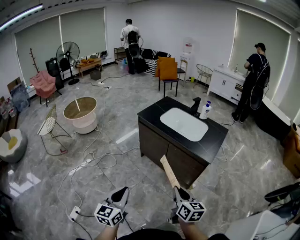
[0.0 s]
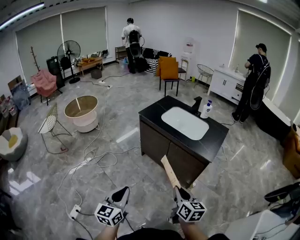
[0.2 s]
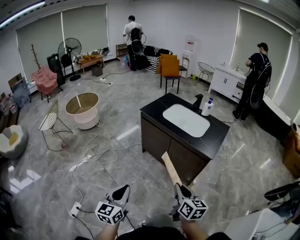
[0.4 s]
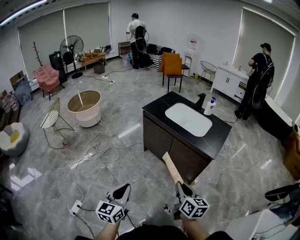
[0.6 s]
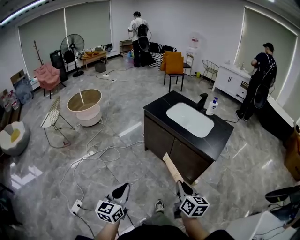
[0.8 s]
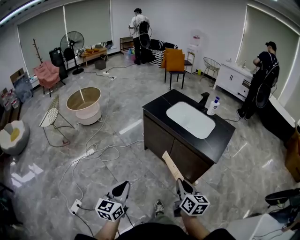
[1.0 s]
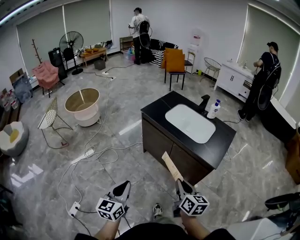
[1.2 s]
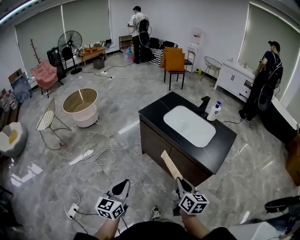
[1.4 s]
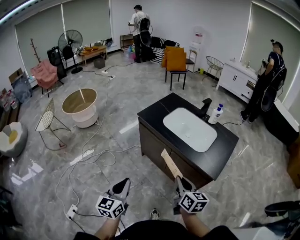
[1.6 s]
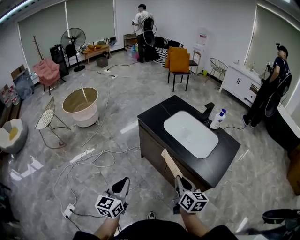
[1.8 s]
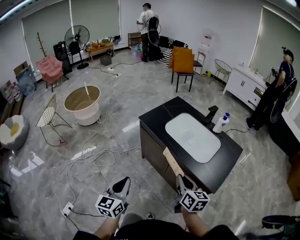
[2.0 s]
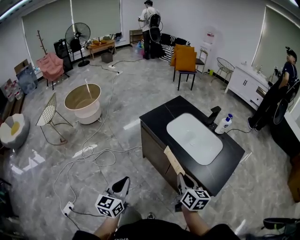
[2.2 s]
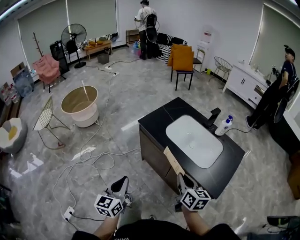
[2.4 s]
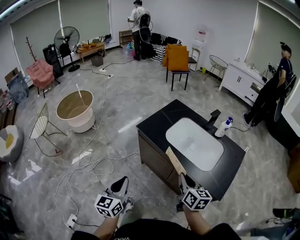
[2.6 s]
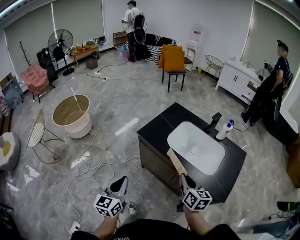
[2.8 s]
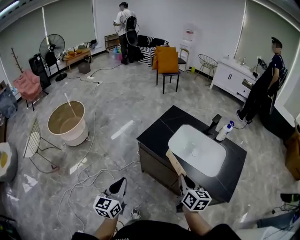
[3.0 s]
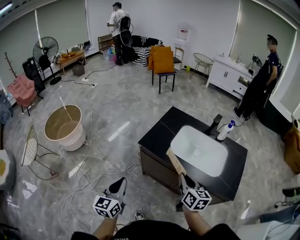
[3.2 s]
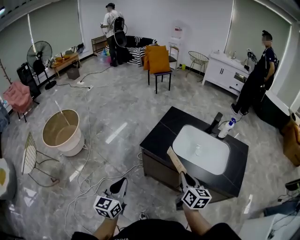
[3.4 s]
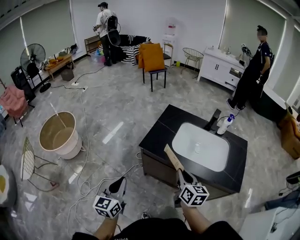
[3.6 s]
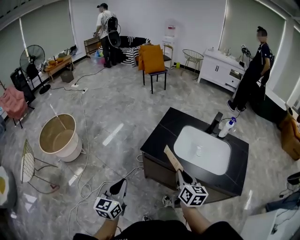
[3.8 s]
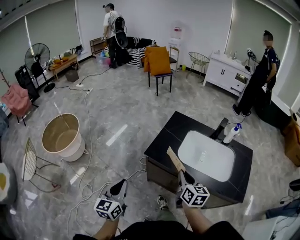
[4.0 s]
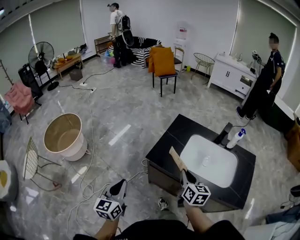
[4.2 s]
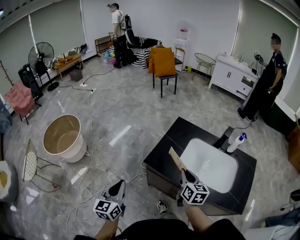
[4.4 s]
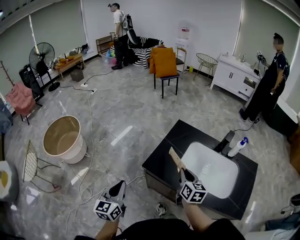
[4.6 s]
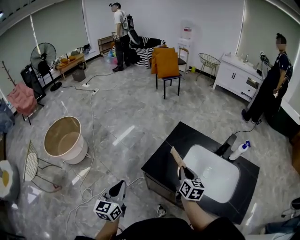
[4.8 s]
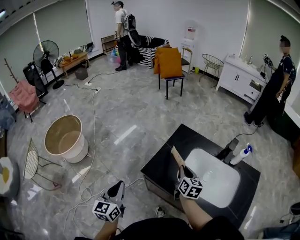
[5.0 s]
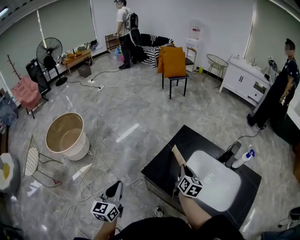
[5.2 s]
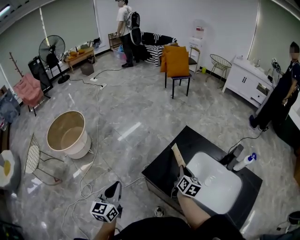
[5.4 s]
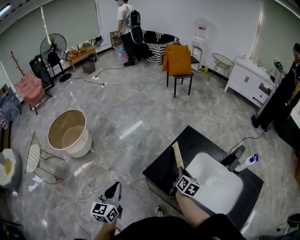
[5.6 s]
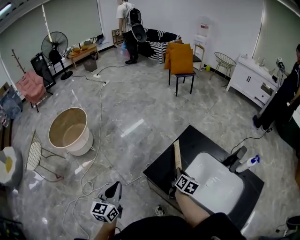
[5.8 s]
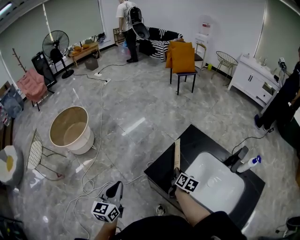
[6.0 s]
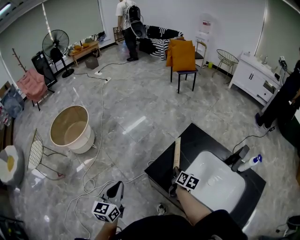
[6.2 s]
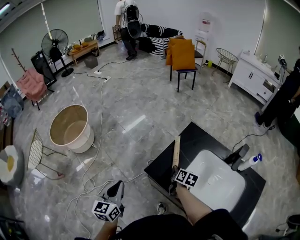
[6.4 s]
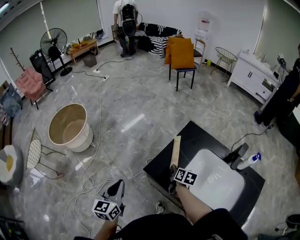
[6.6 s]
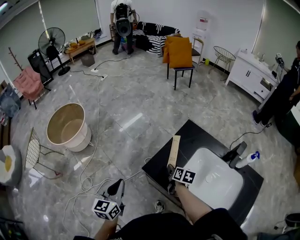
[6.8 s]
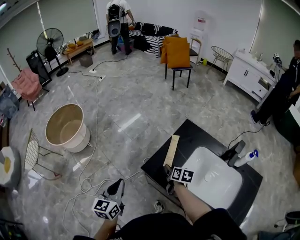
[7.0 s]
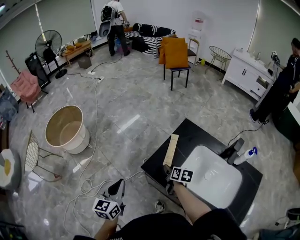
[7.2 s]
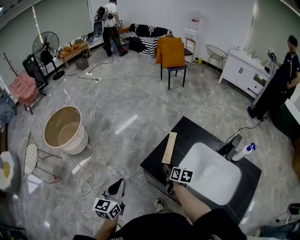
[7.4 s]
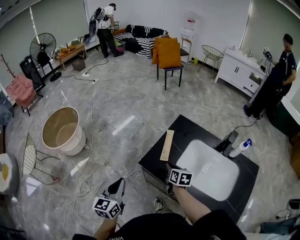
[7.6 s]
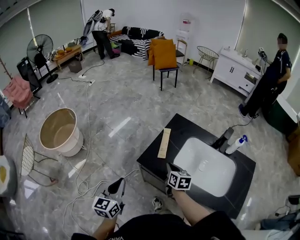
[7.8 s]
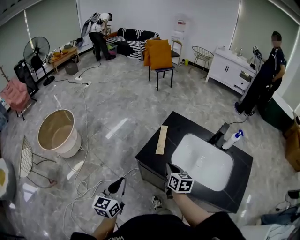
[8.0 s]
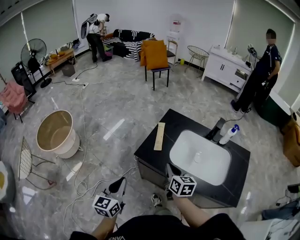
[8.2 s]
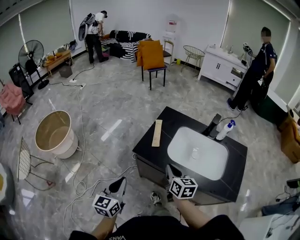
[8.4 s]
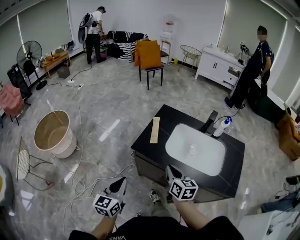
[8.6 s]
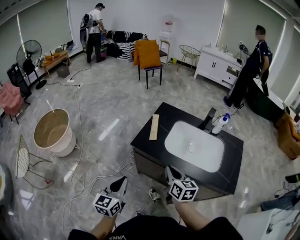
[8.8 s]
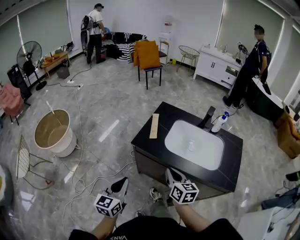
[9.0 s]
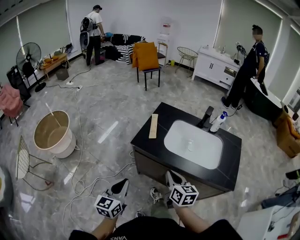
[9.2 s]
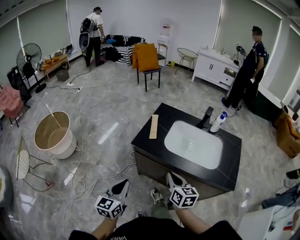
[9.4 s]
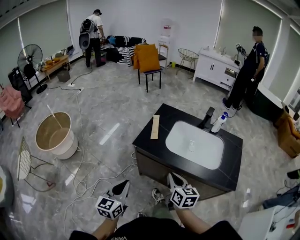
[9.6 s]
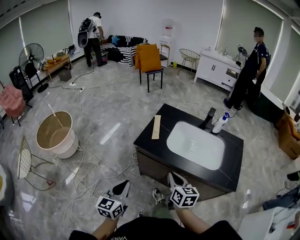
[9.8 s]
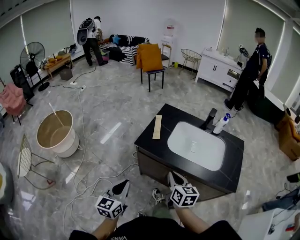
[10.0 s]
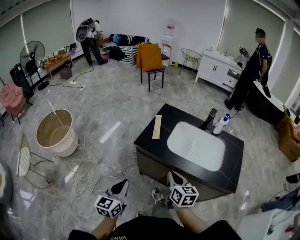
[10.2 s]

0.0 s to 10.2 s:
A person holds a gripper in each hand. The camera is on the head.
0.0 to 1.4 s: Both grippers travel together forward, approximately 15 cm.
1.4 to 3.0 s: Both grippers move forward, some 30 cm.
3.0 to 4.4 s: The two grippers go some 20 cm forward and to the left.
4.4 to 5.8 s: The right gripper travels forward and downward by some 20 cm. Meanwhile the left gripper moves forward, roughly 5 cm.
5.8 to 7.2 s: The right gripper ends up roughly 5 cm from where it was, and opens up.
7.2 to 8.8 s: The left gripper shifts approximately 15 cm backward, while the right gripper moves backward and upward, about 30 cm, changes its angle by about 30 degrees, and closes.
8.8 to 10.2 s: The grippers stay close to where they were, moving slightly.

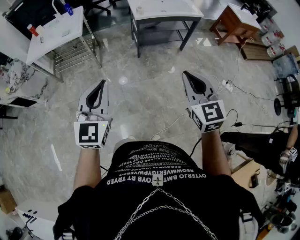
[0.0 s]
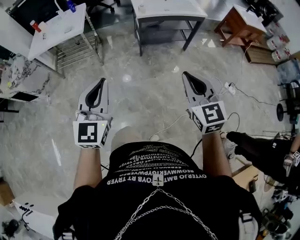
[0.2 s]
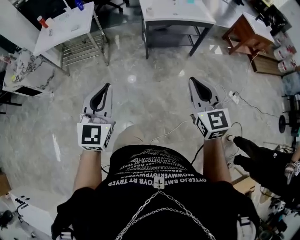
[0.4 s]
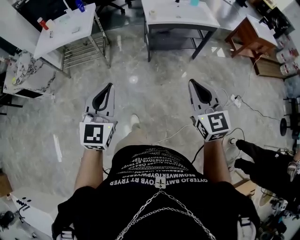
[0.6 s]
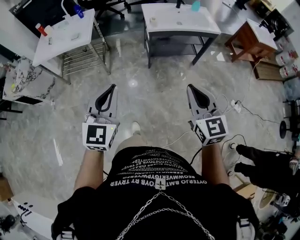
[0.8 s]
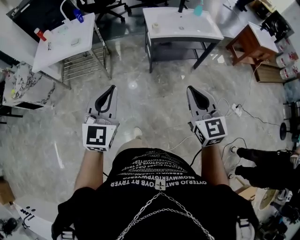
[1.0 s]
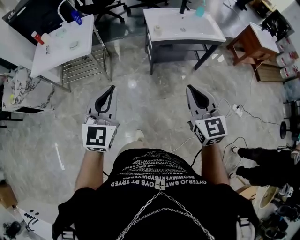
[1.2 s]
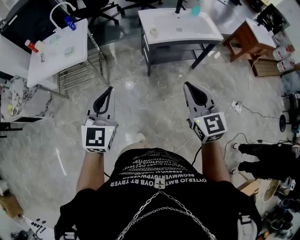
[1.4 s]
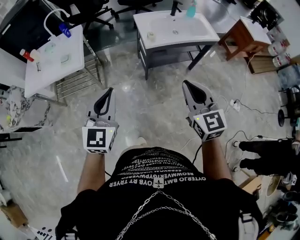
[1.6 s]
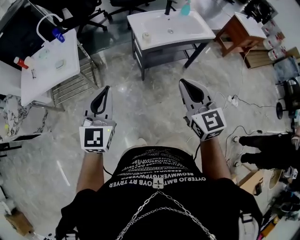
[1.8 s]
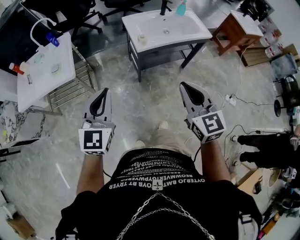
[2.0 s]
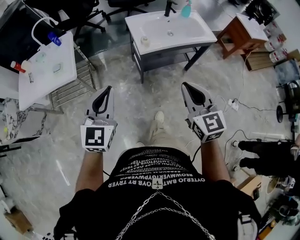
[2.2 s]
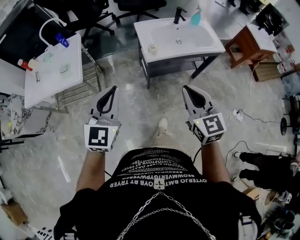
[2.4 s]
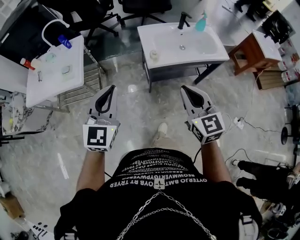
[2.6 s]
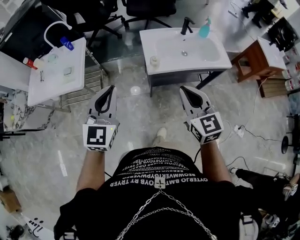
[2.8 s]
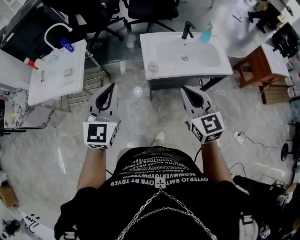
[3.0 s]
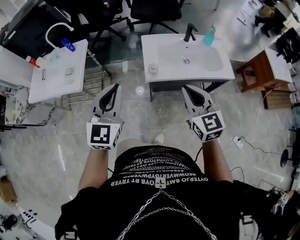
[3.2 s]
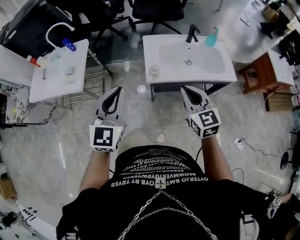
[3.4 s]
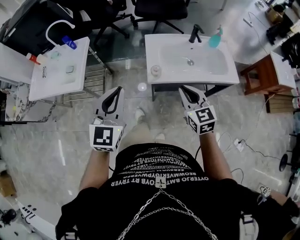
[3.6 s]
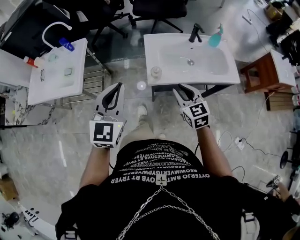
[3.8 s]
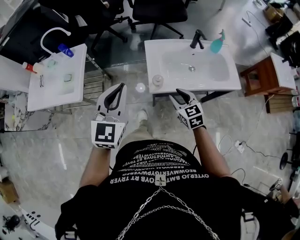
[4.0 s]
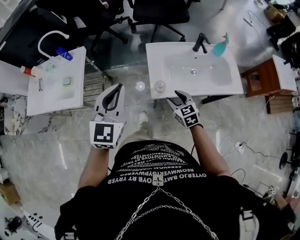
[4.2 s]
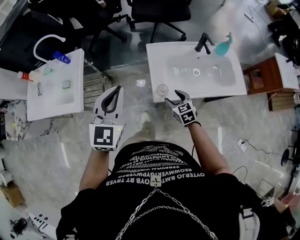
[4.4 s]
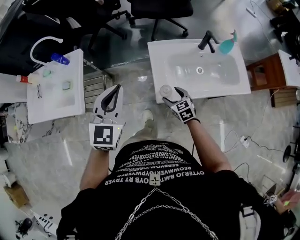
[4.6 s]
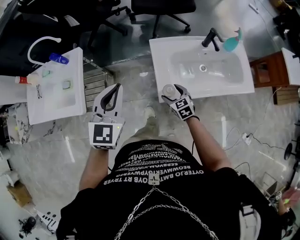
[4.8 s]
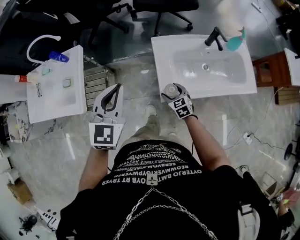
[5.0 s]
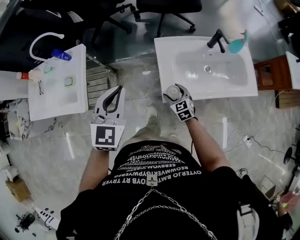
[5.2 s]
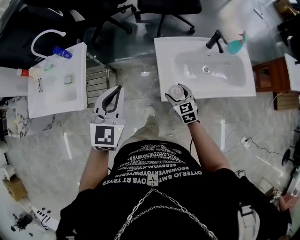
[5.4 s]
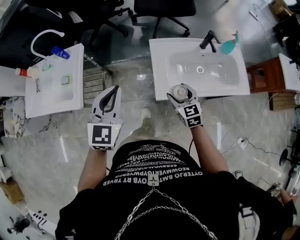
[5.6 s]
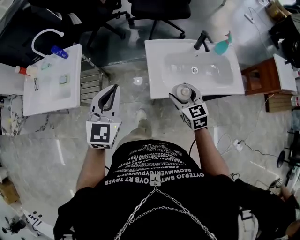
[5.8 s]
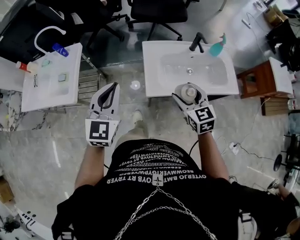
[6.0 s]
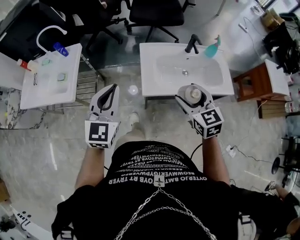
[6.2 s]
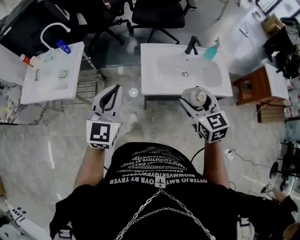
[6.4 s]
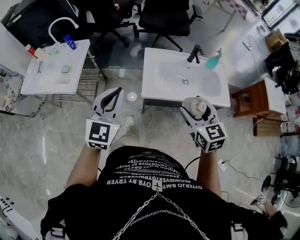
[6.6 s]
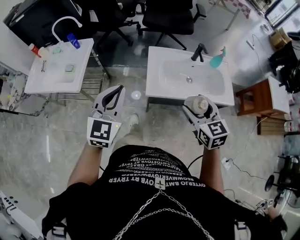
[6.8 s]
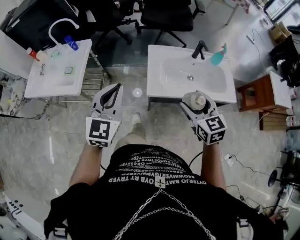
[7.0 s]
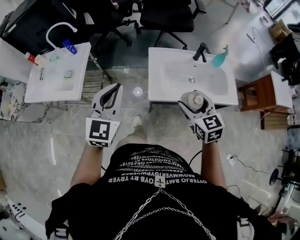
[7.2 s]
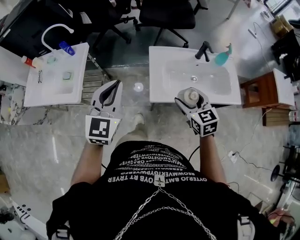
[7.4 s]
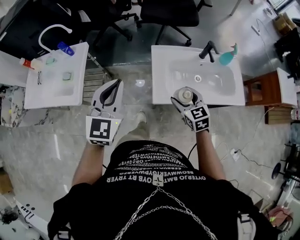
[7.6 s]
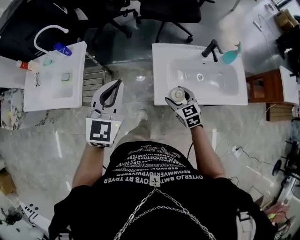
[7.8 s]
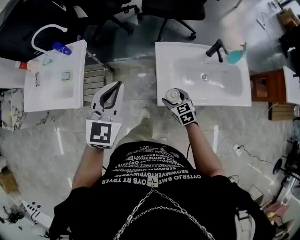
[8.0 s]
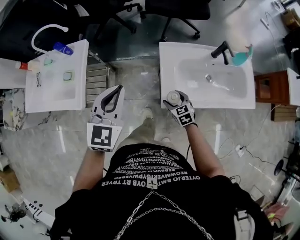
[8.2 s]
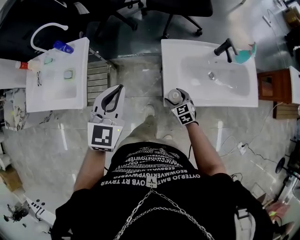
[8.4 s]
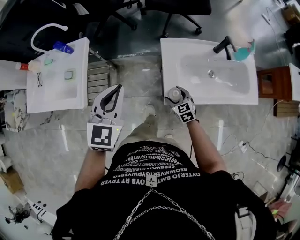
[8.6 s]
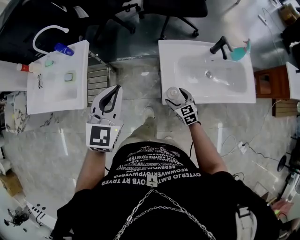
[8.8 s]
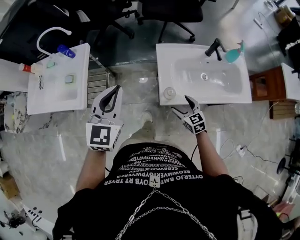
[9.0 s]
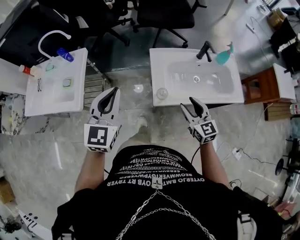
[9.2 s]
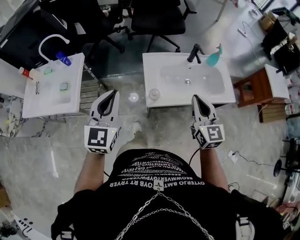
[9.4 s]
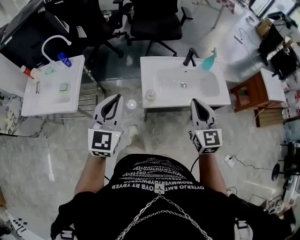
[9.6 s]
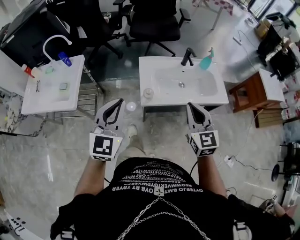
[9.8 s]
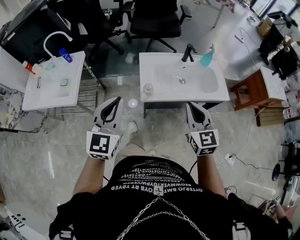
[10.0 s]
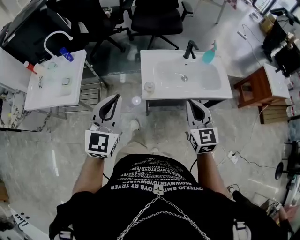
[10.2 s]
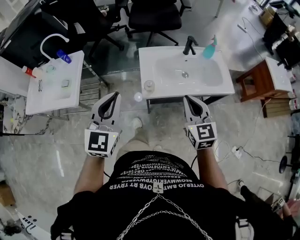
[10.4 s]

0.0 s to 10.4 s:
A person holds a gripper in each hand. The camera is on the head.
0.0 to 1.4 s: Both grippers move forward, roughly 30 cm.
1.4 to 3.0 s: The grippers both shift forward by approximately 30 cm.
3.0 to 4.4 s: The right gripper shifts roughly 40 cm downward and forward, turns by some 30 degrees, and opens up. Meanwhile the left gripper moves forward, roughly 20 cm.
4.4 to 6.0 s: The right gripper travels upward by about 20 cm.
6.0 to 7.4 s: The left gripper goes backward and returns, some 10 cm each way. The right gripper moves roughly 10 cm backward and comes back.
7.4 to 9.0 s: The left gripper travels forward by some 5 cm. The right gripper moves downward, approximately 20 cm.
9.0 to 10.4 s: The left gripper travels backward, to the right and upward by approximately 20 cm, while the right gripper goes approximately 30 cm upward and backward, changes its angle by roughly 30 degrees, and closes.

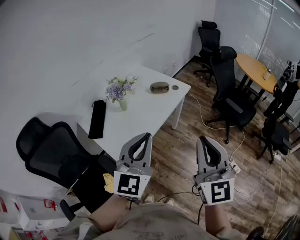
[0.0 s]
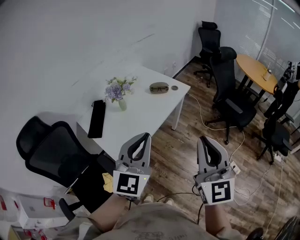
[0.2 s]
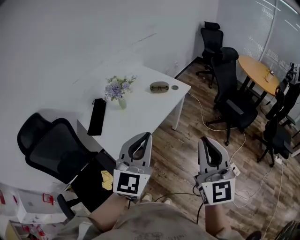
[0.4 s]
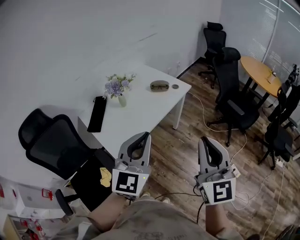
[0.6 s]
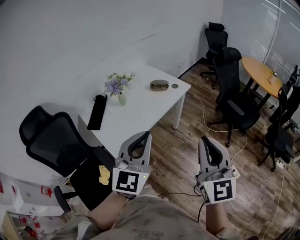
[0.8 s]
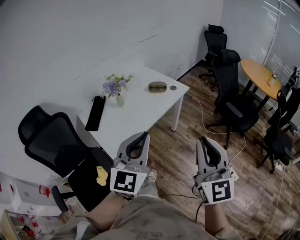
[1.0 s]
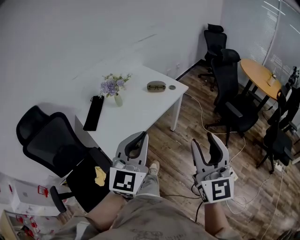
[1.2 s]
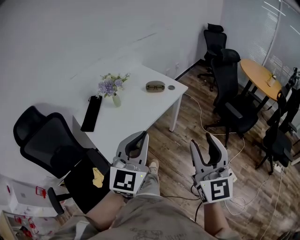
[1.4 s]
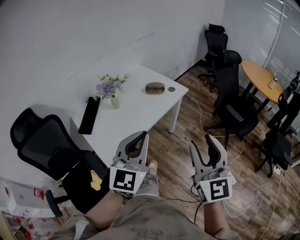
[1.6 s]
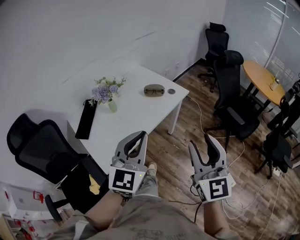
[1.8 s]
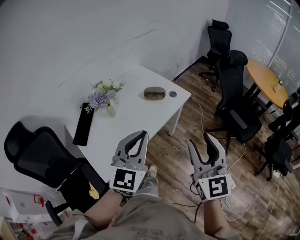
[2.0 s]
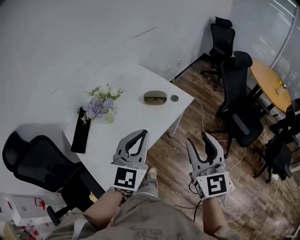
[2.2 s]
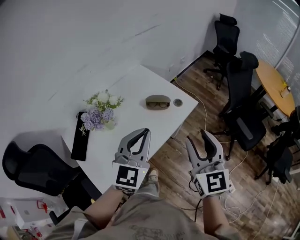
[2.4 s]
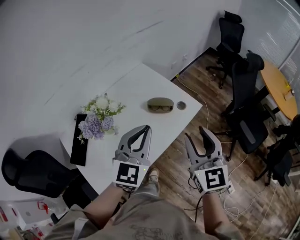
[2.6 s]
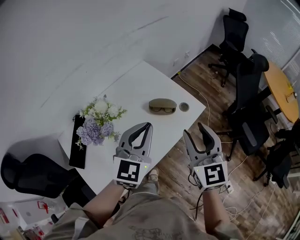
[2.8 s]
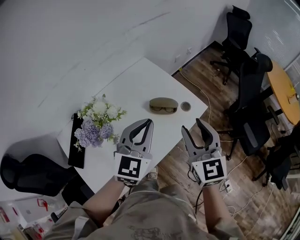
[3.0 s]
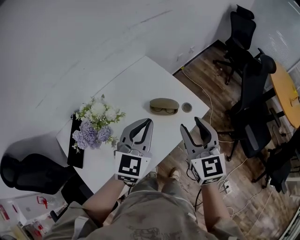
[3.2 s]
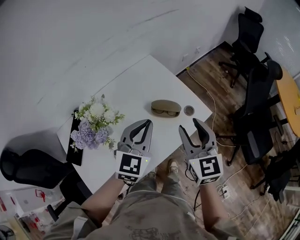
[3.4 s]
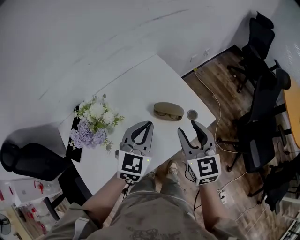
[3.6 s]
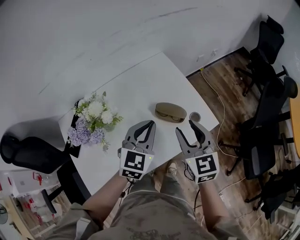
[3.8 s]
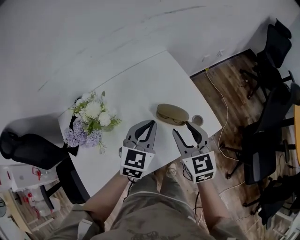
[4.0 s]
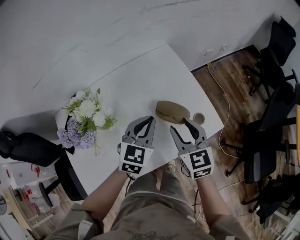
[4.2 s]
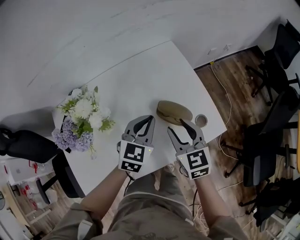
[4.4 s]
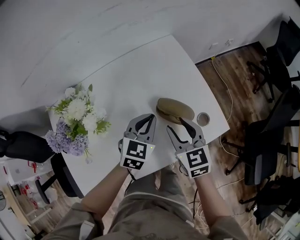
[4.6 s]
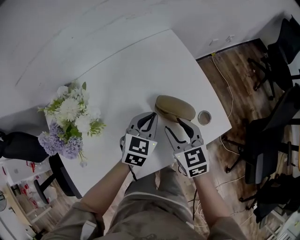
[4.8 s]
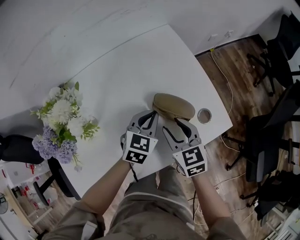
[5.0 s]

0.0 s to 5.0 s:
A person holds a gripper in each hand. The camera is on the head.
0.0 to 1.6 s: The grippers both shift to the right by approximately 10 cm. The right gripper opens up.
1.6 to 3.4 s: Both grippers move forward, roughly 40 cm. The right gripper changes its angle by some 20 degrees.
3.4 to 5.0 s: Both grippers travel together downward, some 25 cm. The left gripper rotates approximately 20 degrees. The right gripper turns by approximately 30 degrees.
